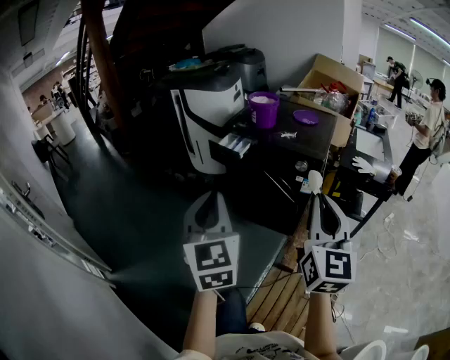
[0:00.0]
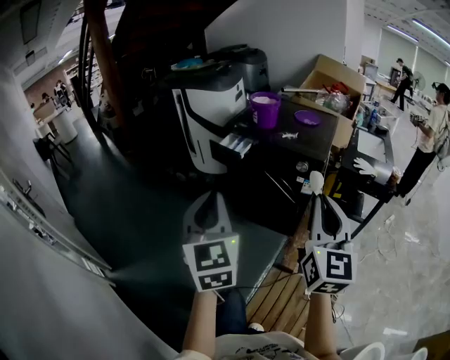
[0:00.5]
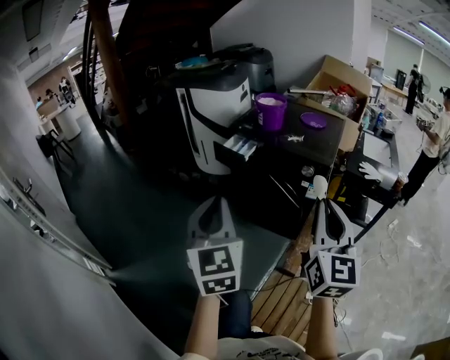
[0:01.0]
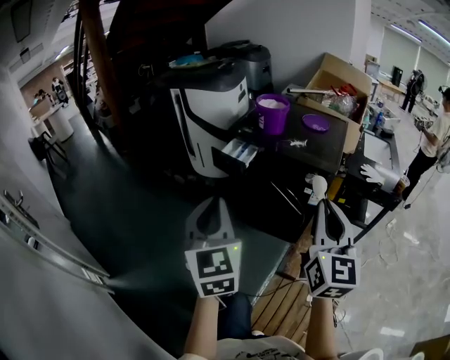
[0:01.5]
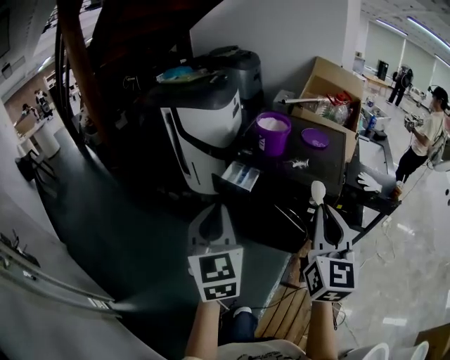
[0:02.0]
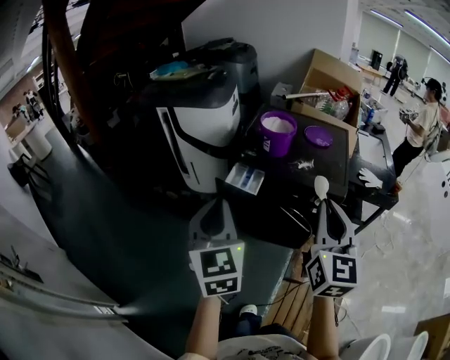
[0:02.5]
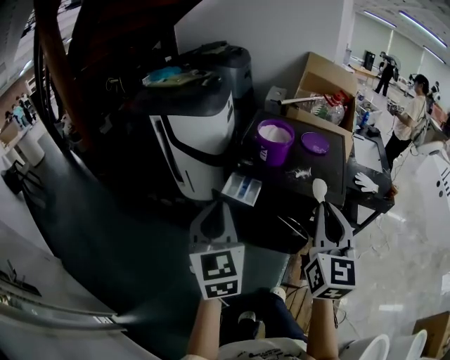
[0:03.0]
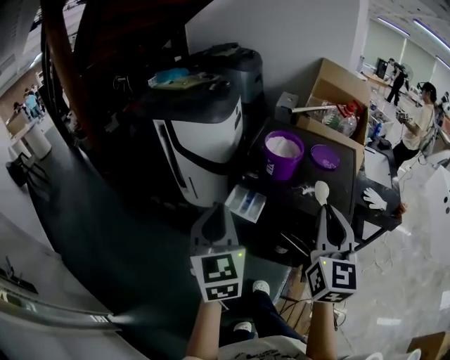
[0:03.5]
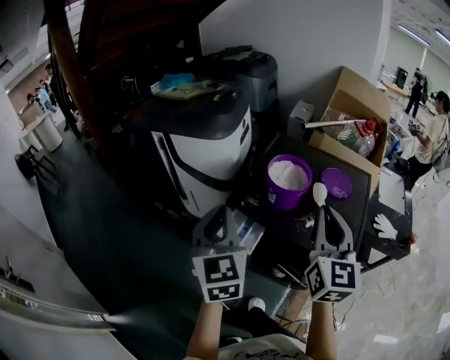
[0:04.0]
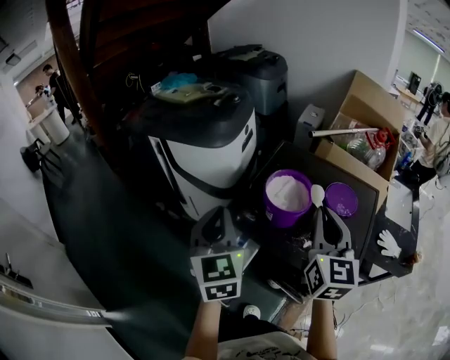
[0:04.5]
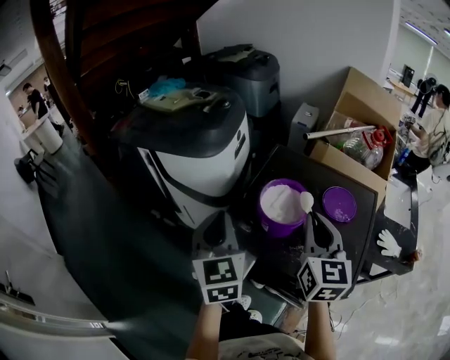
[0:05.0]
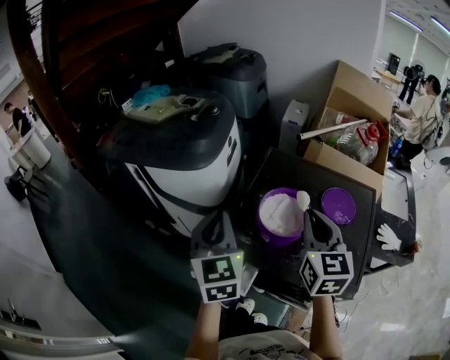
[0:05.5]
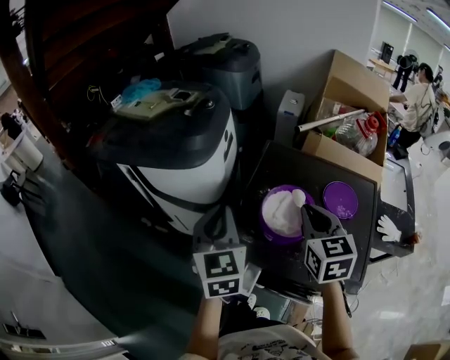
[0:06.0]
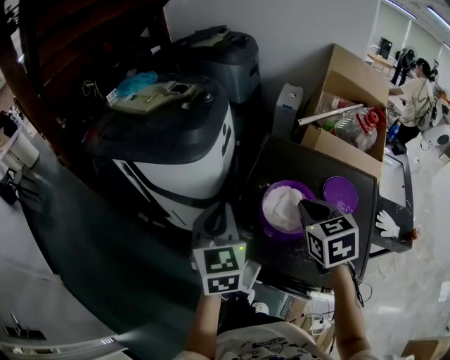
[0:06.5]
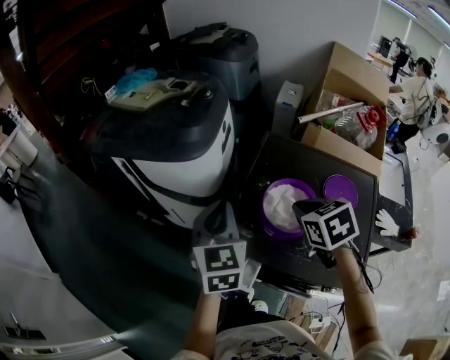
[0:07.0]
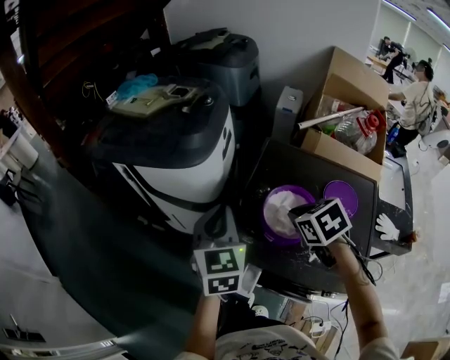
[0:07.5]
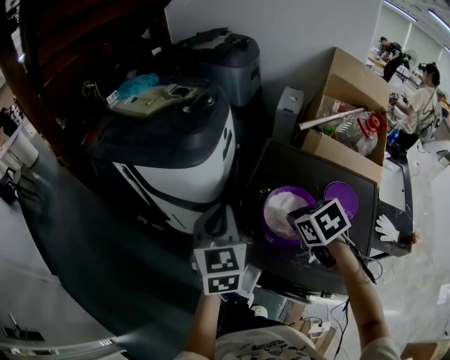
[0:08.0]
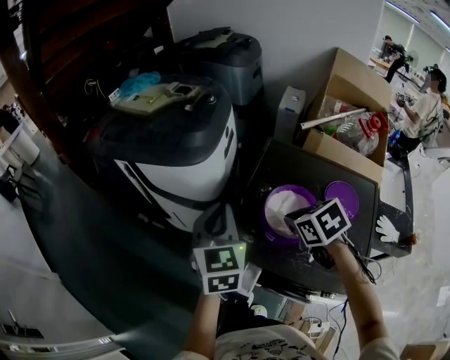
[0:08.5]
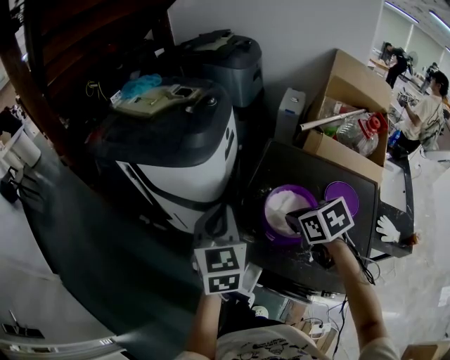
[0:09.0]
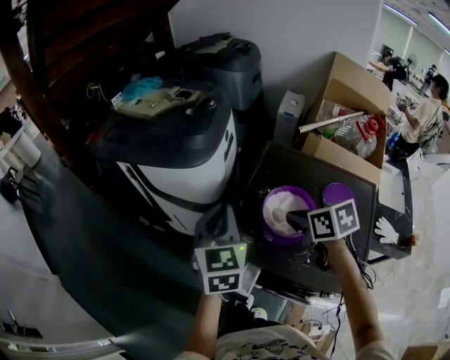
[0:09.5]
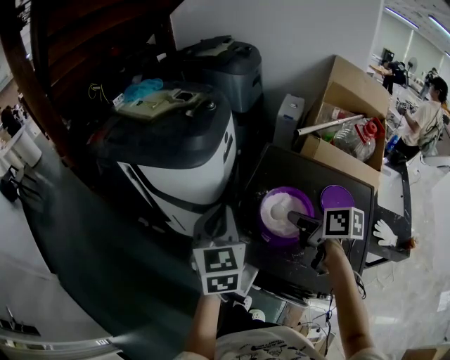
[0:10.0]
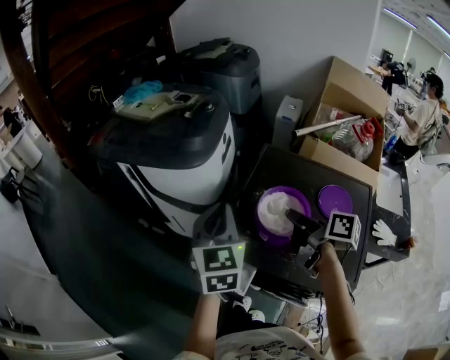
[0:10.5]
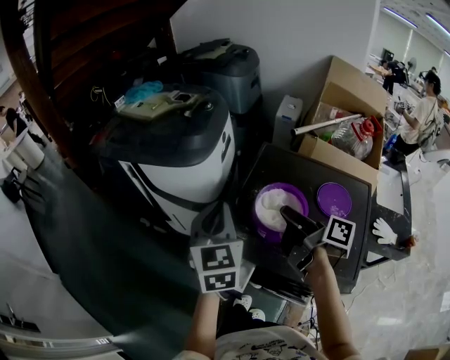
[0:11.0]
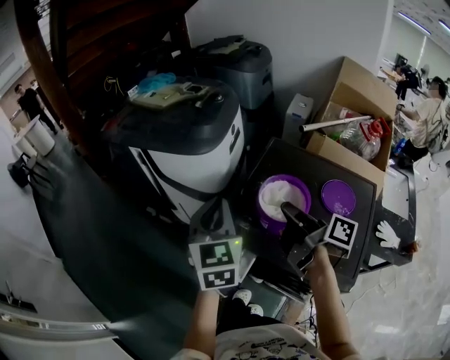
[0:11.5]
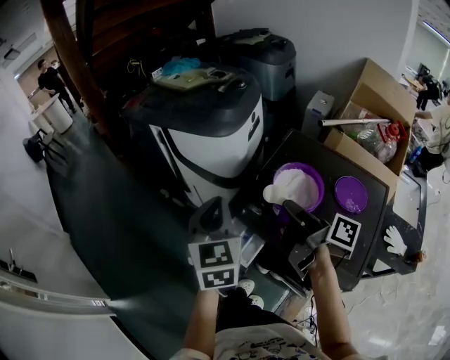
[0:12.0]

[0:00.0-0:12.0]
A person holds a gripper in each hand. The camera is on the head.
0:00.0 to 0:02.0: Both grippers travel together forward, some 20 cm.
0:02.0 to 0:04.0: The grippers both shift forward by some 30 cm.
0:04.0 to 0:06.0: Both grippers travel together forward, approximately 20 cm. The right gripper swivels about 30 degrees.
0:06.0 to 0:08.0: The right gripper travels downward by about 10 cm, and tilts its fingers some 30 degrees downward.
0:08.0 to 0:10.0: The right gripper rolls clockwise, seen from behind, by about 40 degrees.
0:10.0 to 0:12.0: Both grippers move backward and to the left, about 10 cm. The right gripper rotates roughly 30 degrees.

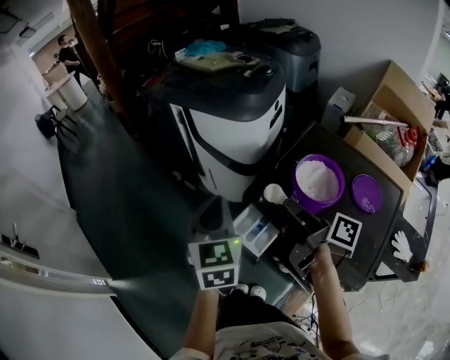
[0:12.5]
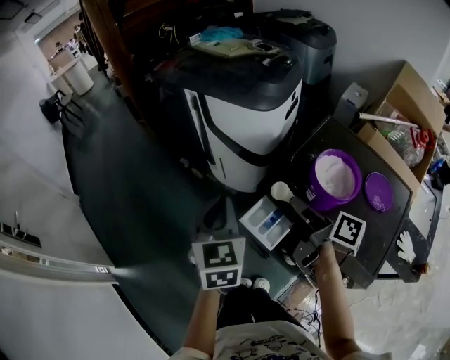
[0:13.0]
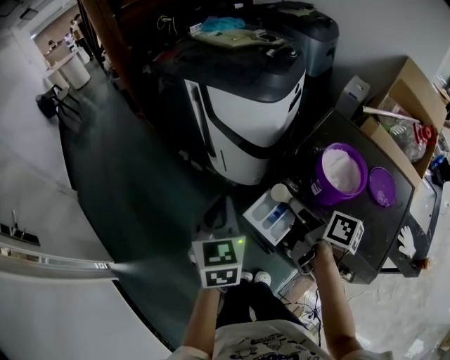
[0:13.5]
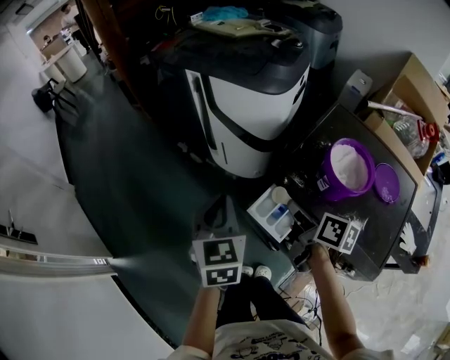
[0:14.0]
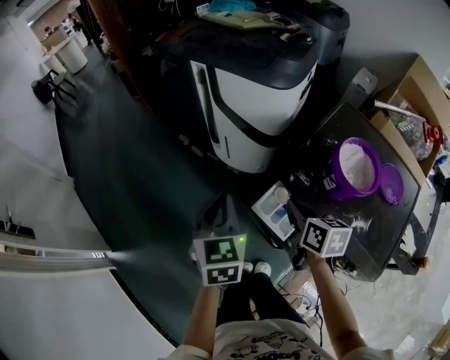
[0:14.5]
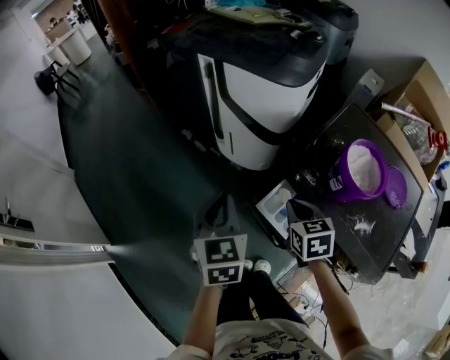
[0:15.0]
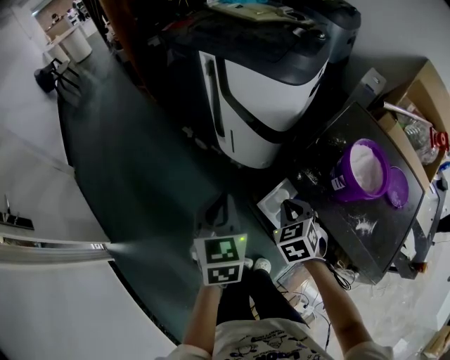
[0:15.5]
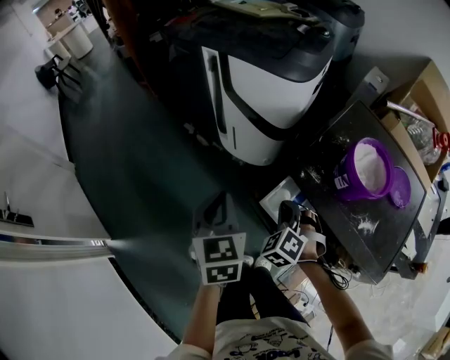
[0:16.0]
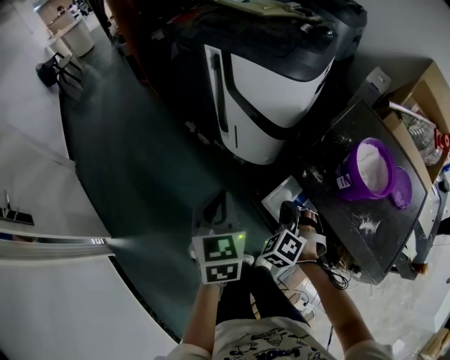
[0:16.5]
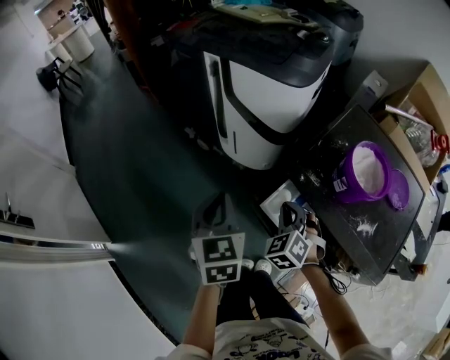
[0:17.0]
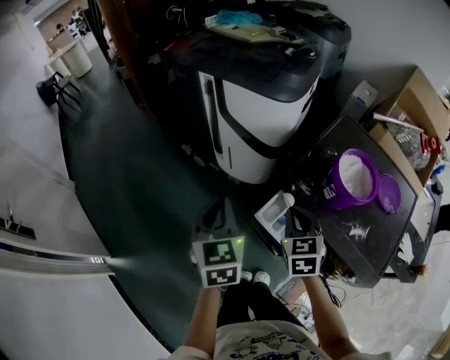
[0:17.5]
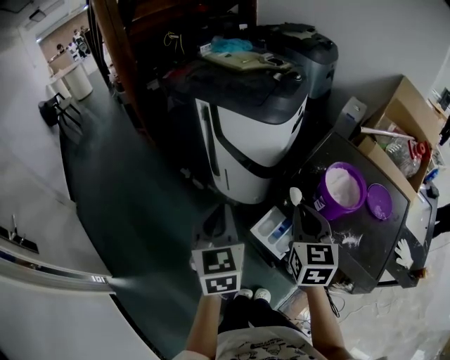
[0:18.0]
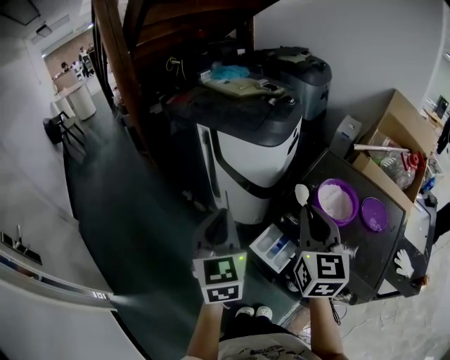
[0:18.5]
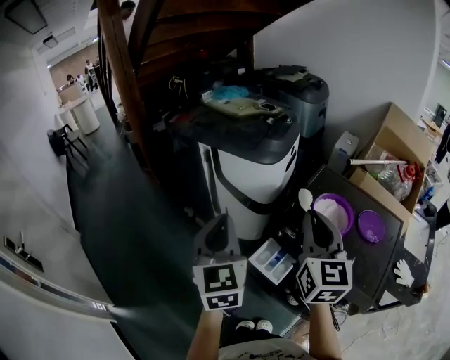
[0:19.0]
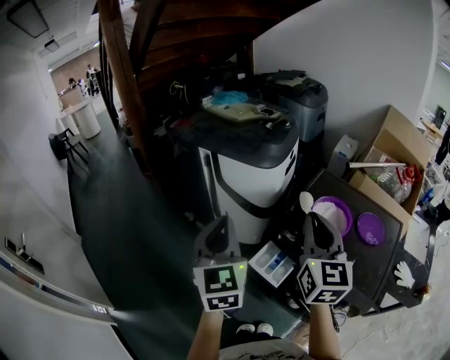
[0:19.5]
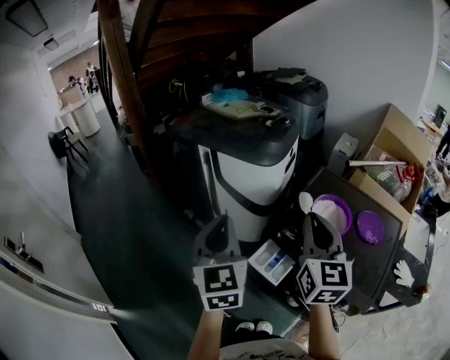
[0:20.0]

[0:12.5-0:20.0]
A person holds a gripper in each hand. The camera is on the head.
0:12.5 to 0:14.5: Both grippers move downward and to the left, approximately 15 cm. The right gripper rolls counterclockwise, seen from behind, by approximately 40 degrees.
0:14.5 to 0:16.5: The right gripper travels downward by roughly 10 cm, and rolls counterclockwise, seen from behind, by some 80 degrees.
0:16.5 to 0:18.0: The right gripper heads upward, covering some 20 cm, and rolls clockwise, seen from behind, by about 60 degrees. The left gripper shifts about 10 cm upward.
0:18.0 to 0:20.0: Both grippers travel together upward, some 10 cm.

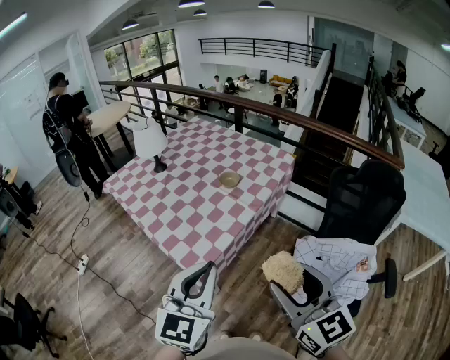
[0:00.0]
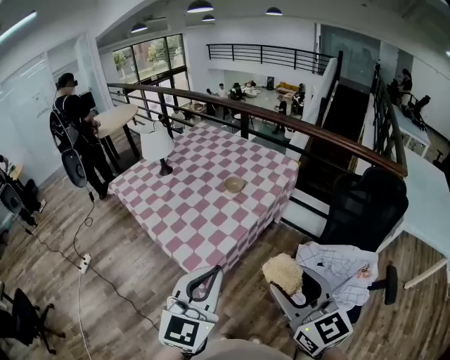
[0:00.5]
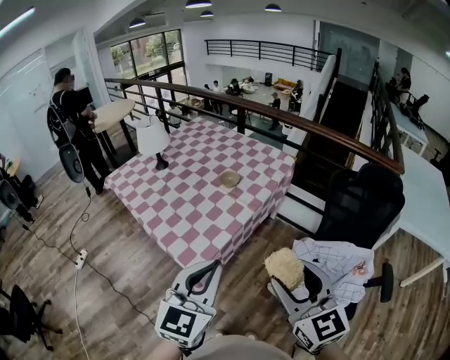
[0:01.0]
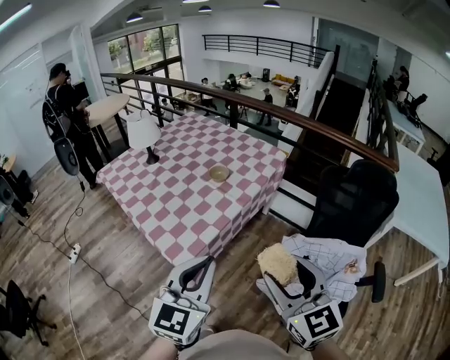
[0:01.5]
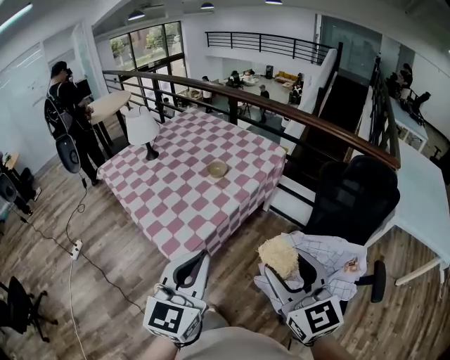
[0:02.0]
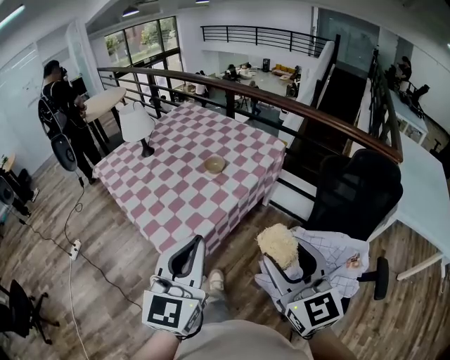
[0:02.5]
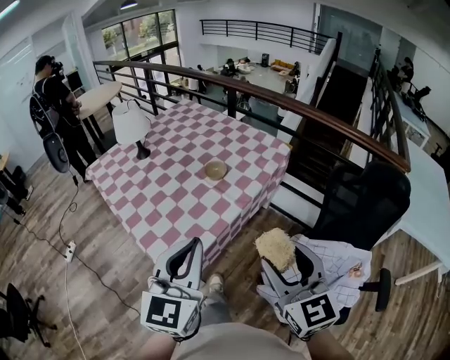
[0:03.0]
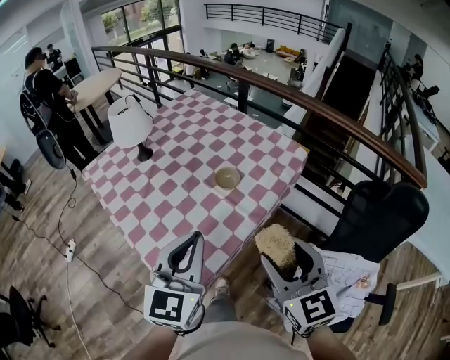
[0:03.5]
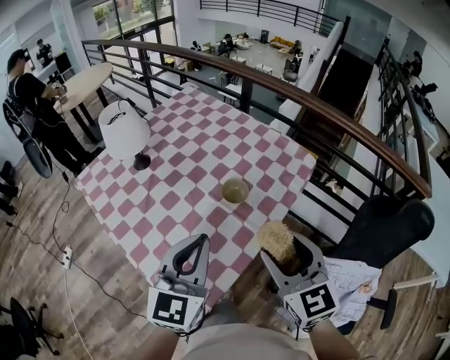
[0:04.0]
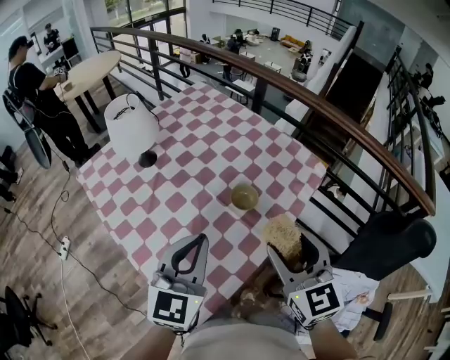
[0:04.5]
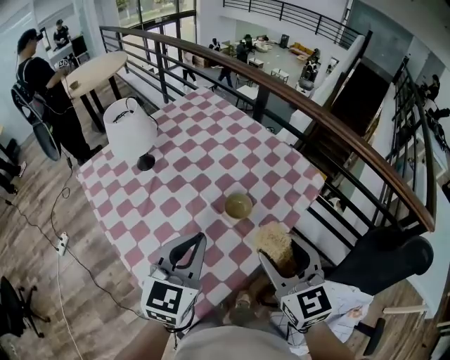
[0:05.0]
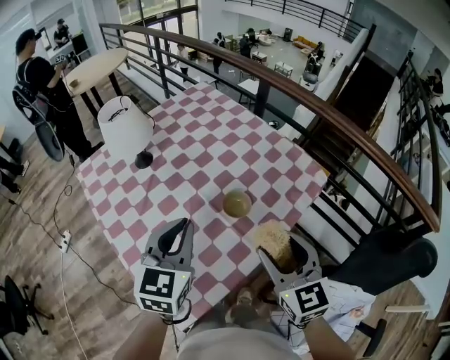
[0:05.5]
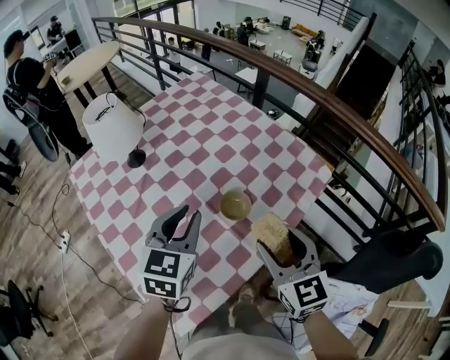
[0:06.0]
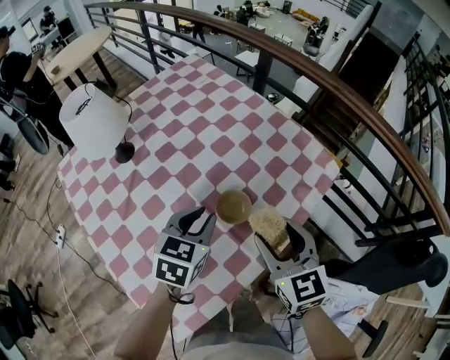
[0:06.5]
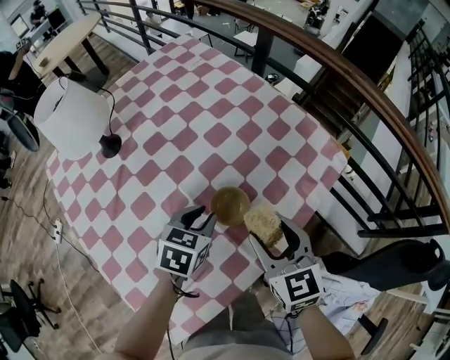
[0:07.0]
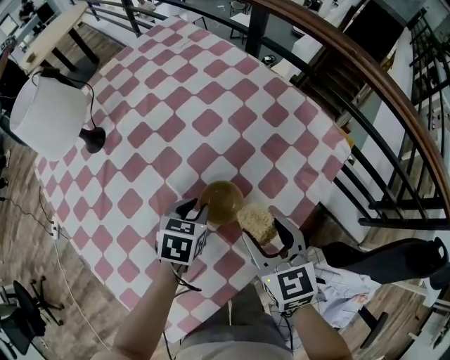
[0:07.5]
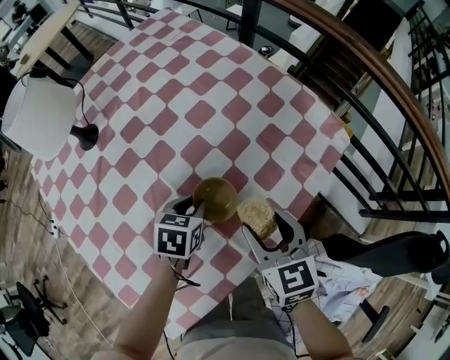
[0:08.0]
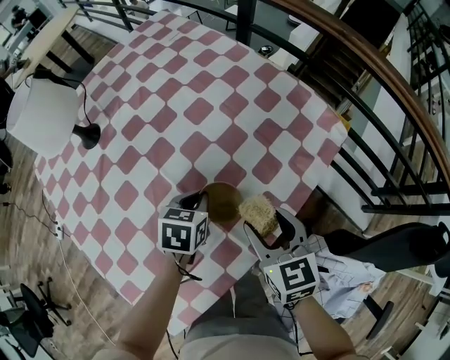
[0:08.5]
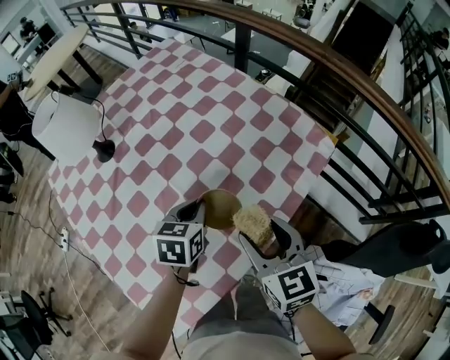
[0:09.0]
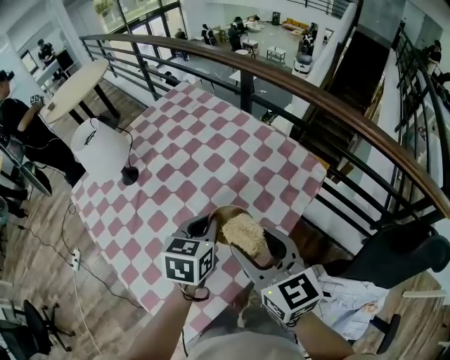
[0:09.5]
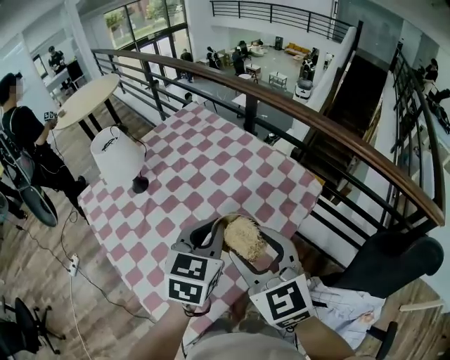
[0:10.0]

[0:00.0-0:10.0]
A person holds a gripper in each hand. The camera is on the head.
0:00.0 to 0:02.0: The two grippers go about 5 cm to the right.
0:02.0 to 0:04.0: Both grippers travel together forward, some 35 cm.
0:04.0 to 0:06.0: The grippers both shift forward and downward by some 15 cm. The left gripper turns by roughly 20 degrees.
0:06.0 to 0:08.0: The left gripper travels downward by about 30 cm, and turns by about 40 degrees, while the right gripper heads downward and forward, covering about 20 cm.
0:08.0 to 0:10.0: The right gripper shifts about 30 cm upward and backward, and rotates about 30 degrees. Meanwhile the left gripper moves upward, some 35 cm, turns by approximately 40 degrees, and closes.
